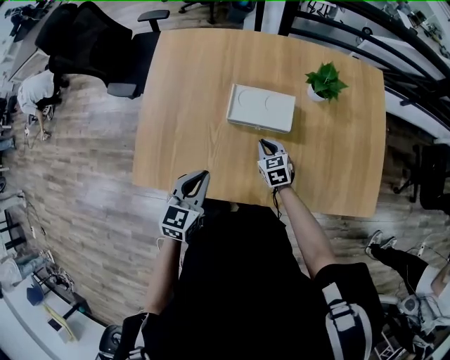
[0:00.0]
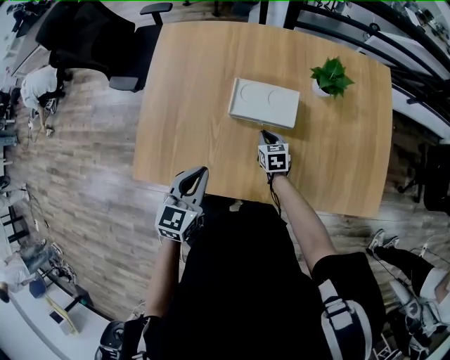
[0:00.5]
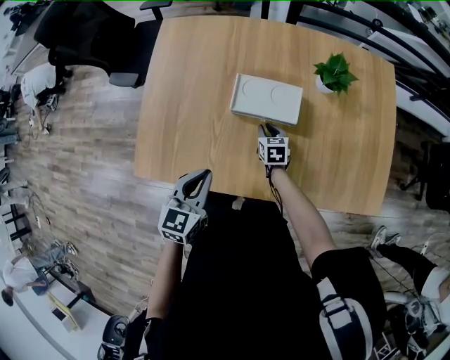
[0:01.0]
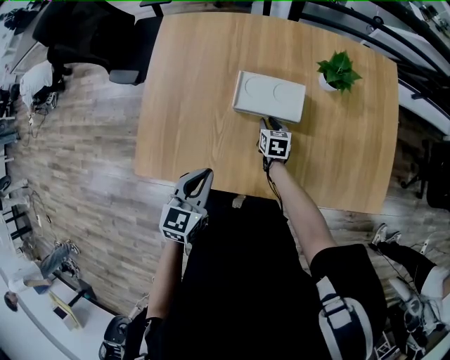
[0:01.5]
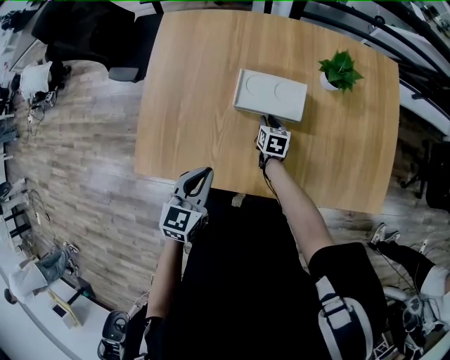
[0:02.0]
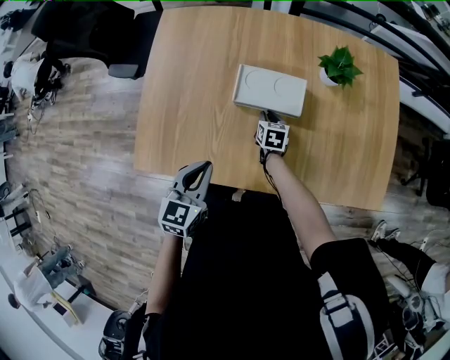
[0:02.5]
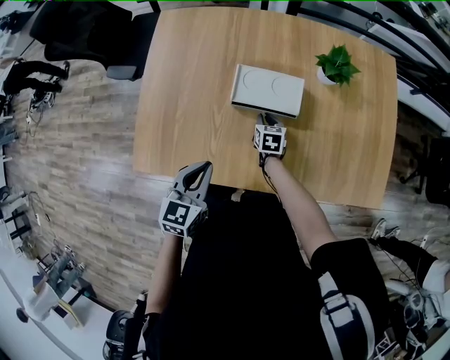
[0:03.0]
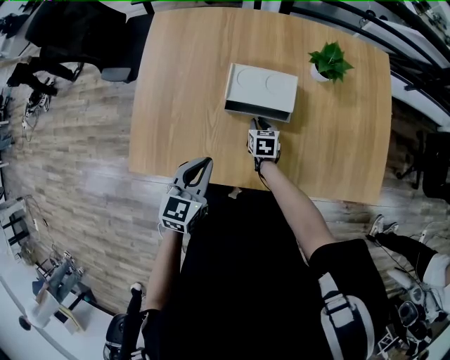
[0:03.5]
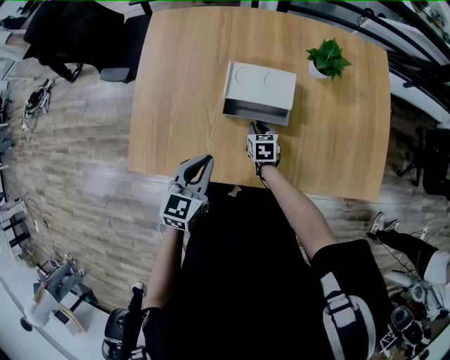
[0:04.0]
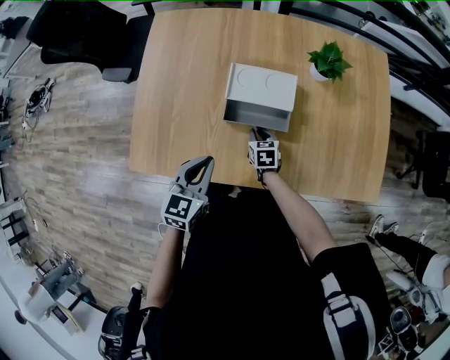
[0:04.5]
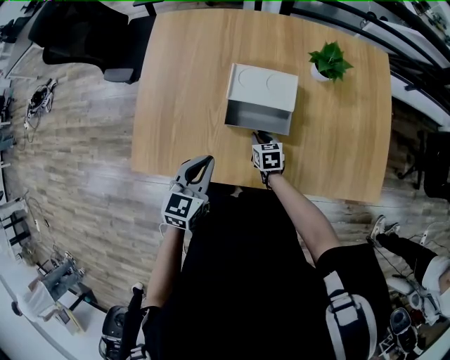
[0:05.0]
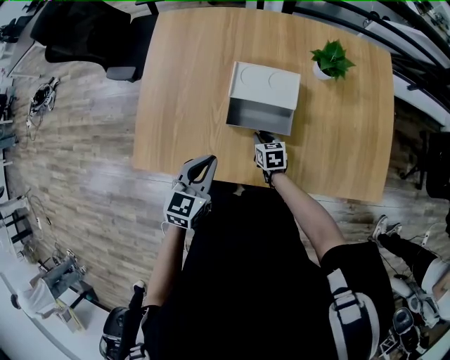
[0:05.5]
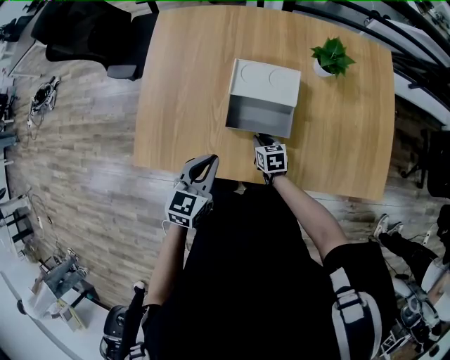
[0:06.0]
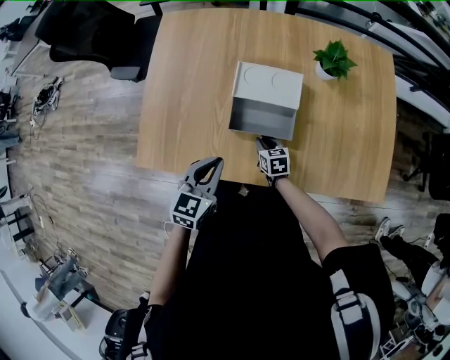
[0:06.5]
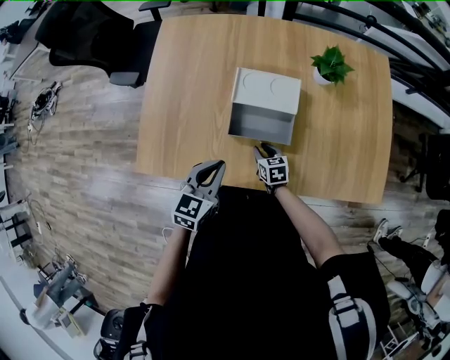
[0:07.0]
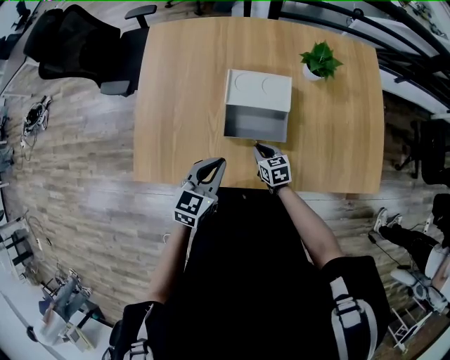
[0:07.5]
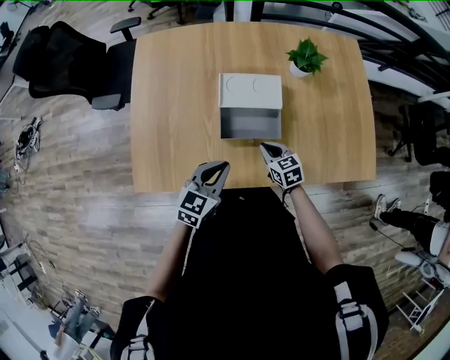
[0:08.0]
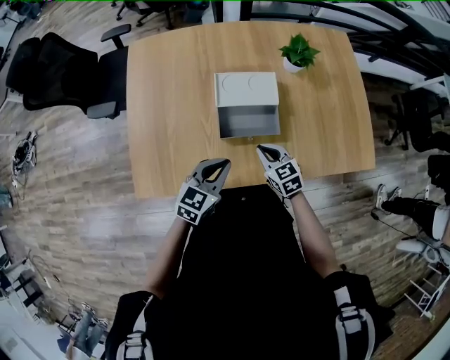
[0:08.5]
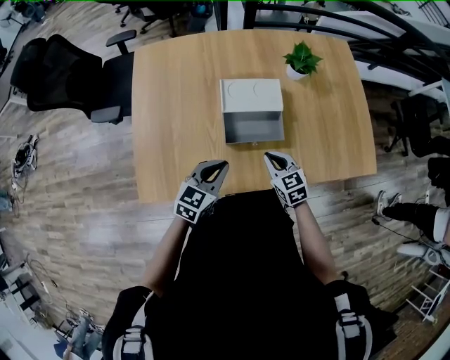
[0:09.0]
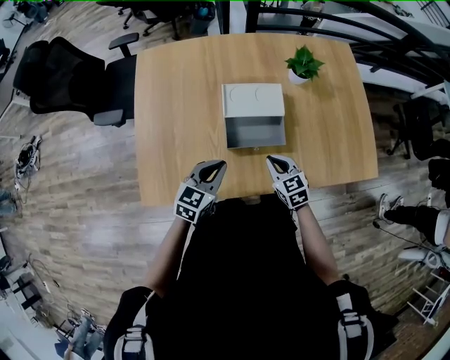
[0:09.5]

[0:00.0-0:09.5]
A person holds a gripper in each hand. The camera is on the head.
0:00.0 to 0:02.0: The right gripper shifts roughly 10 cm forward and downward, and rotates approximately 30 degrees.
0:02.0 to 0:04.0: The right gripper shifts some 5 cm backward.
0:04.0 to 0:05.5: There are only small adjustments of the grippers.
0:05.5 to 0:07.5: The grippers move only a little.
0:07.5 to 0:09.5: The right gripper heads upward, covering approximately 10 cm.

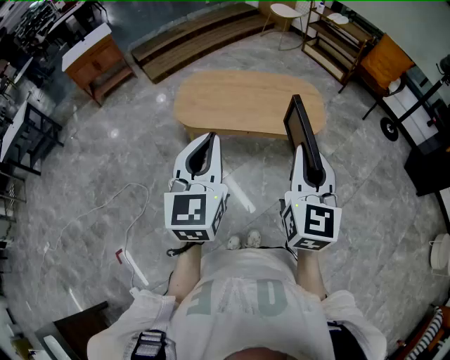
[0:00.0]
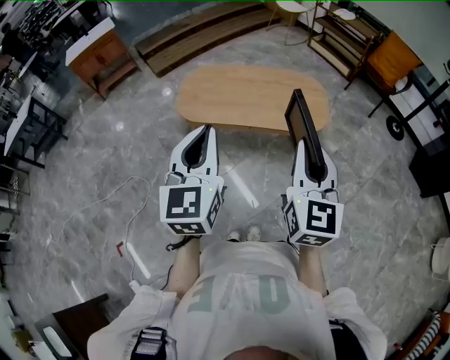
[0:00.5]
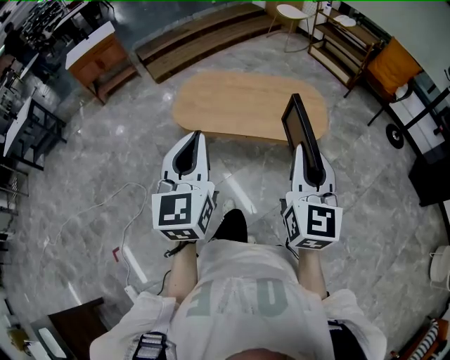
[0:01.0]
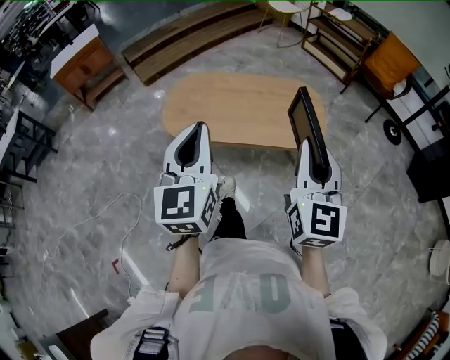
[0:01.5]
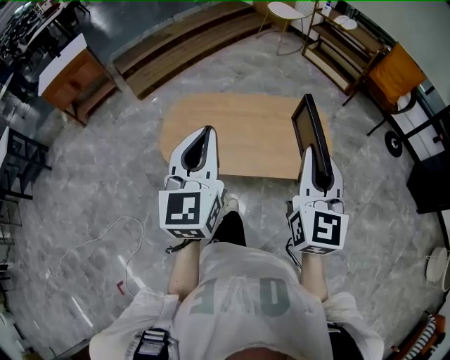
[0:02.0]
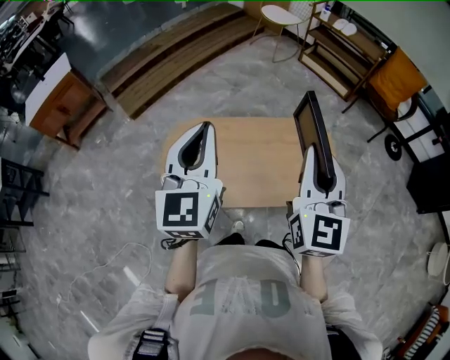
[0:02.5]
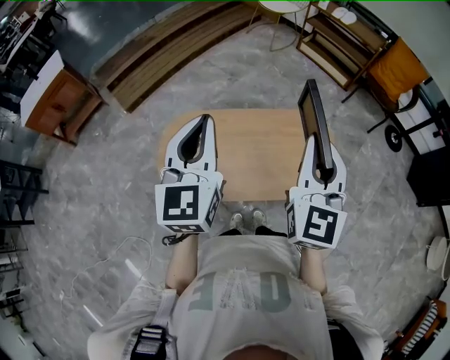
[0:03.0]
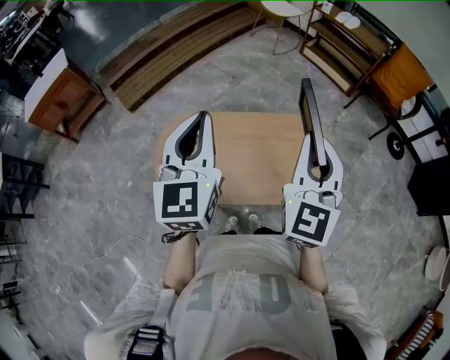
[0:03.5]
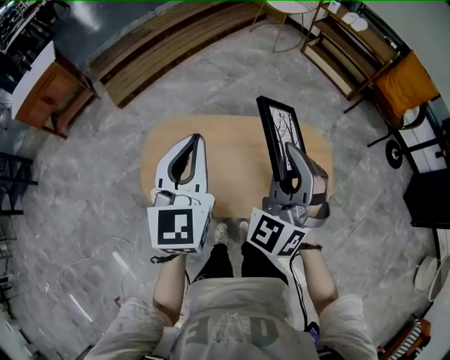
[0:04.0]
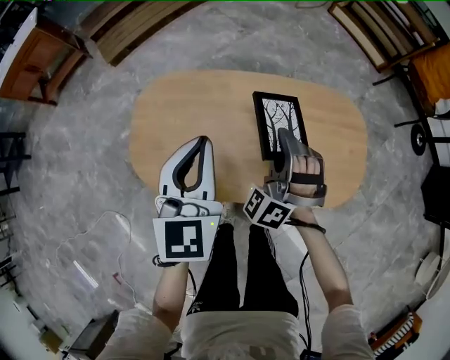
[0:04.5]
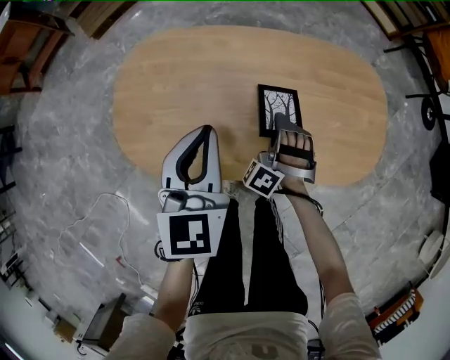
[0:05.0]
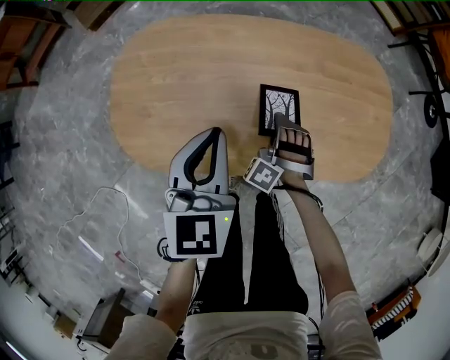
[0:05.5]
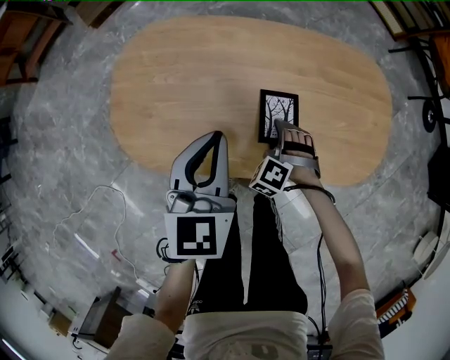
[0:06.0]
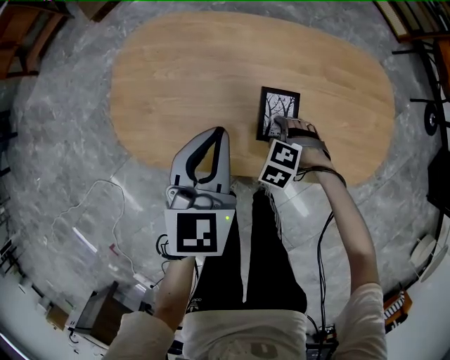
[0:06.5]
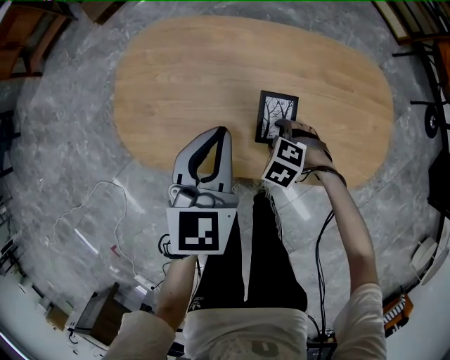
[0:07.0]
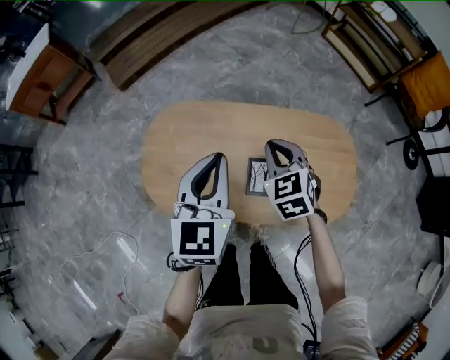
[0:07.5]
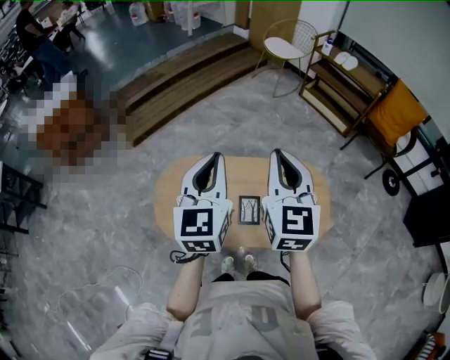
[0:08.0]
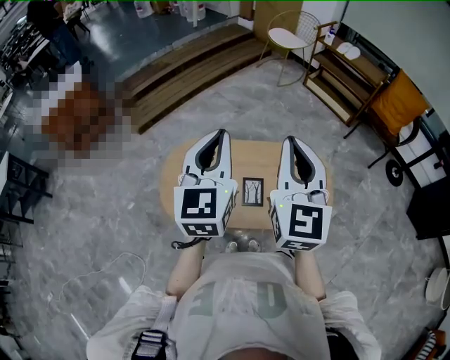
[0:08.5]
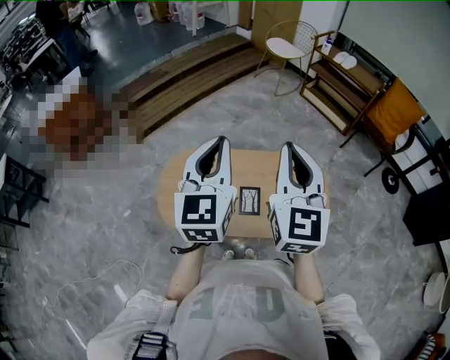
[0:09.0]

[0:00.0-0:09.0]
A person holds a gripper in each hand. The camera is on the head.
0:00.0 to 0:02.0: The two grippers go some 30 cm forward.
0:02.0 to 0:04.5: The left gripper moves forward and downward, approximately 35 cm, while the right gripper goes approximately 40 cm downward, forward and to the left, and rotates around the line of its fingers by approximately 70 degrees, counterclockwise from behind.
0:04.5 to 0:07.0: The right gripper goes roughly 25 cm downward, angles its fingers downward, by roughly 60 degrees, and opens; the left gripper goes roughly 10 cm downward.
0:07.0 to 0:09.0: The right gripper goes about 70 cm upward, tilts its fingers roughly 80 degrees upward, and closes up. Meanwhile the left gripper moves upward, some 40 cm, and turns by some 30 degrees.

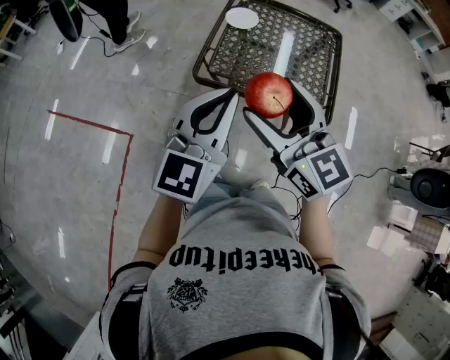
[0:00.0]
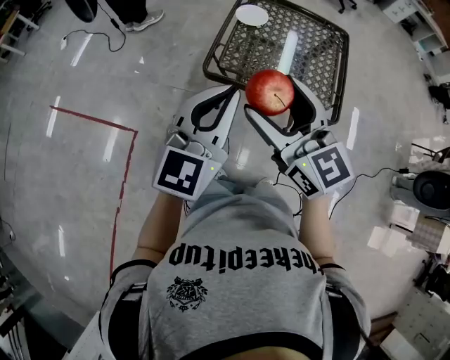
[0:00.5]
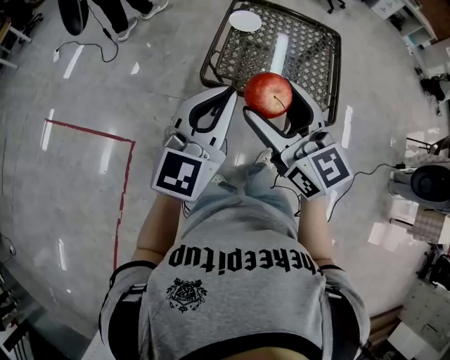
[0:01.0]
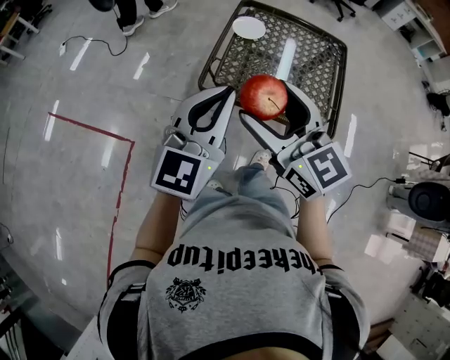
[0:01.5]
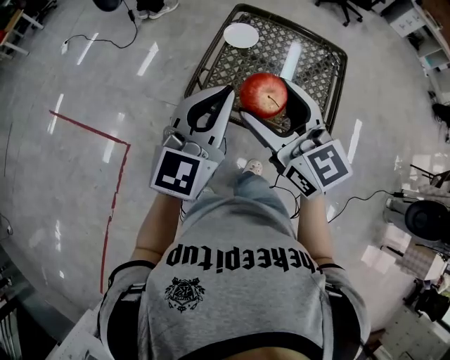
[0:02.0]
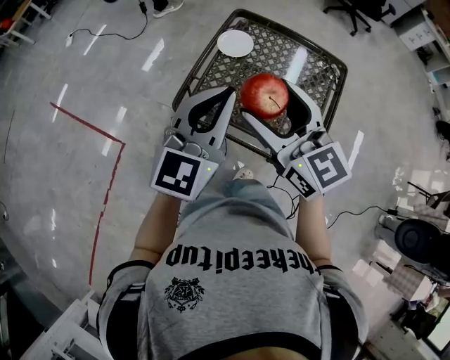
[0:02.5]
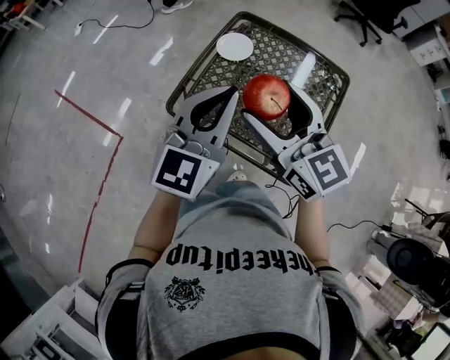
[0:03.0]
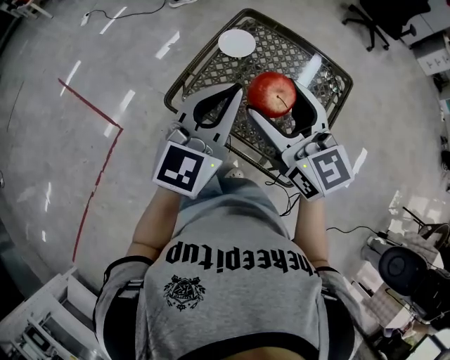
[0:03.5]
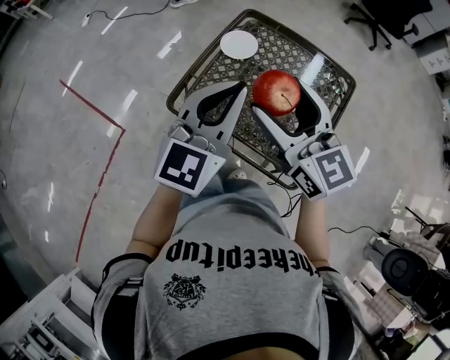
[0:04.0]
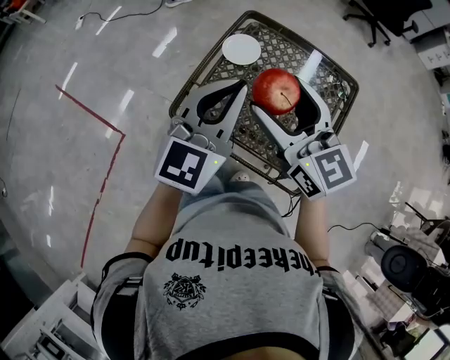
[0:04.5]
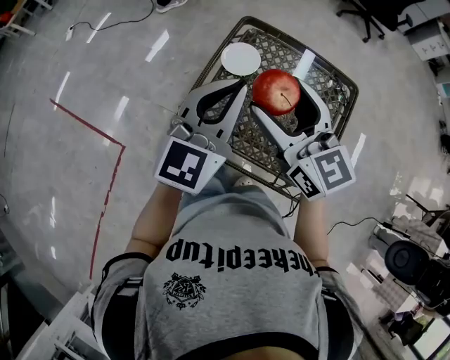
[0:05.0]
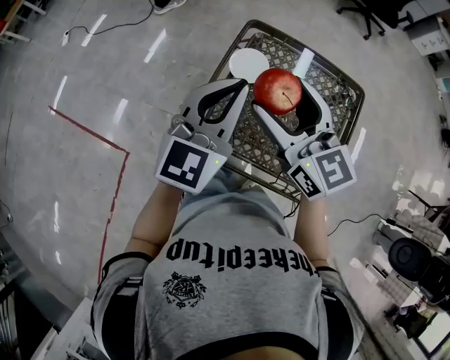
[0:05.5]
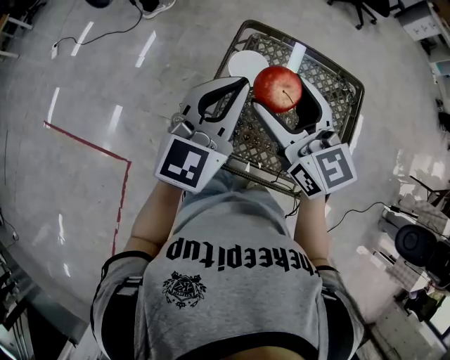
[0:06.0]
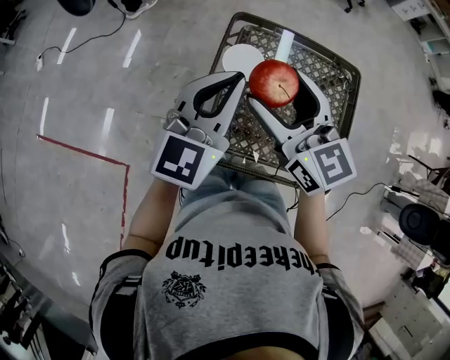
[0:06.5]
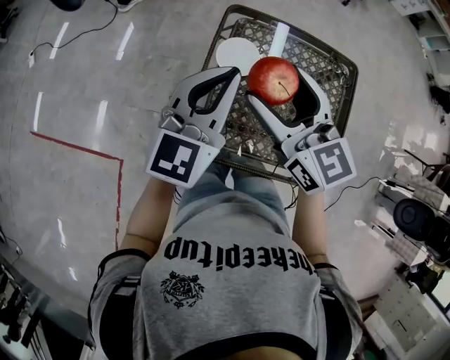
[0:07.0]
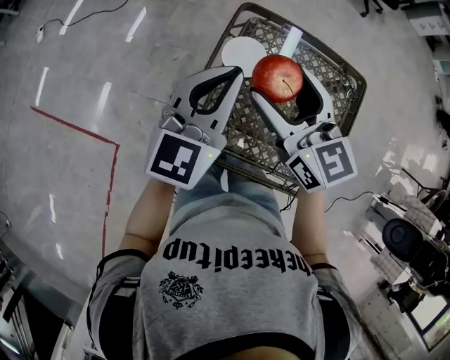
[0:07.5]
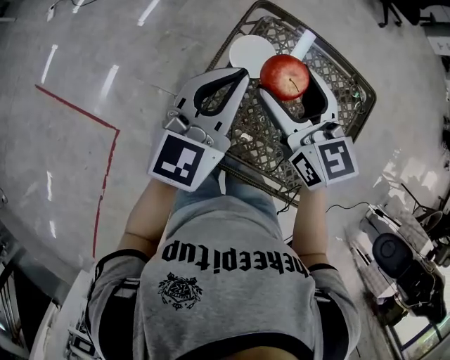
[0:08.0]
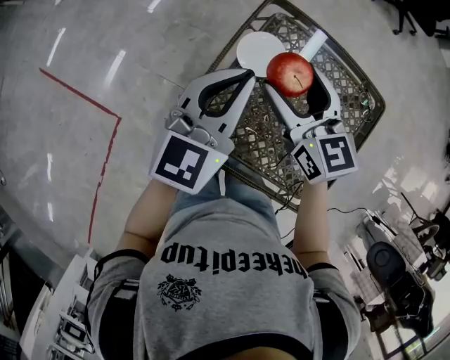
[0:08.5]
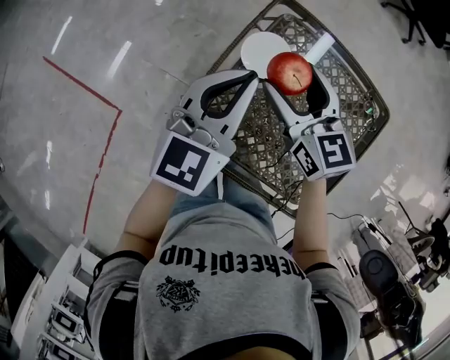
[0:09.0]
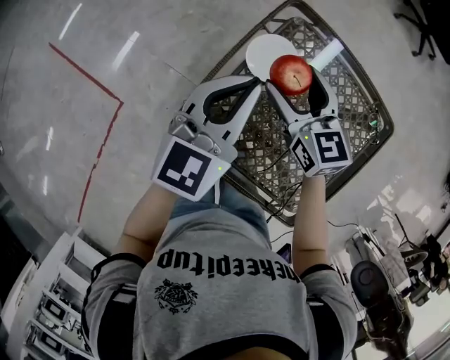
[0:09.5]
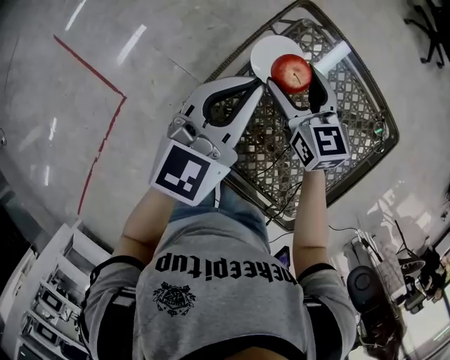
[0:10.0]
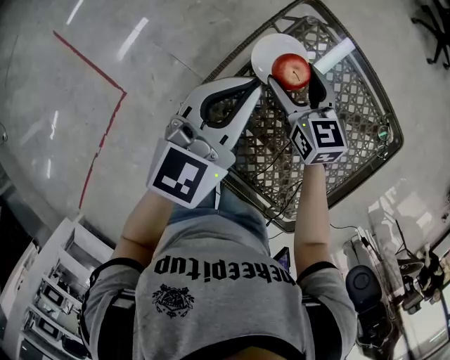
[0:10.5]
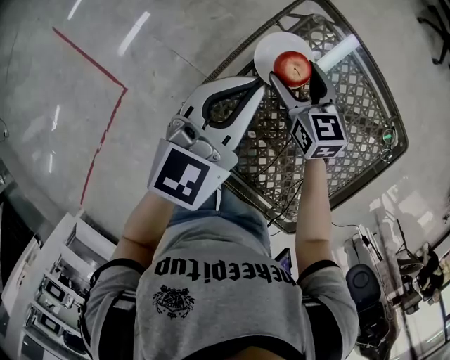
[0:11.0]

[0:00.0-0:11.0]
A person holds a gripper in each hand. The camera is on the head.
0:00.0 to 0:02.0: The grippers both shift forward by roughly 10 cm.
0:02.0 to 0:03.5: Both grippers travel together to the right and forward, about 15 cm.
0:03.5 to 0:05.5: The grippers both shift forward and to the left by about 20 cm.
0:05.5 to 0:07.5: The grippers both shift forward by about 10 cm.
0:07.5 to 0:09.0: The left gripper is displaced downward by roughly 5 cm. The right gripper heads downward and forward, covering some 10 cm.
0:09.0 to 0:11.0: The left gripper shifts some 5 cm downward. Meanwhile the right gripper is displaced downward by roughly 15 cm.
